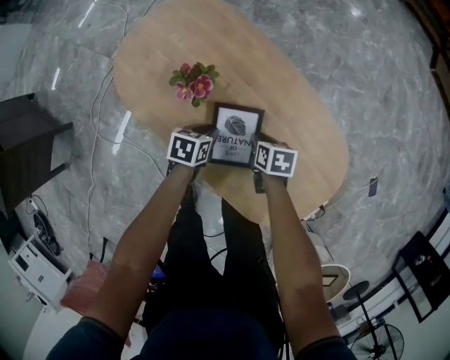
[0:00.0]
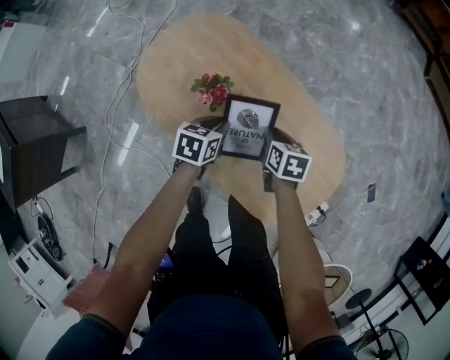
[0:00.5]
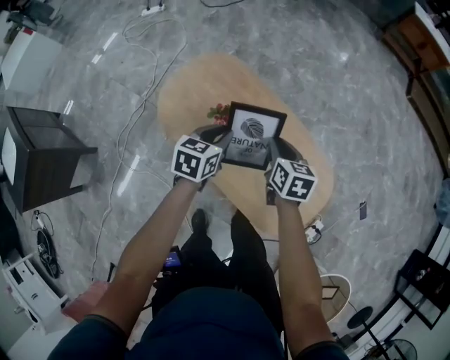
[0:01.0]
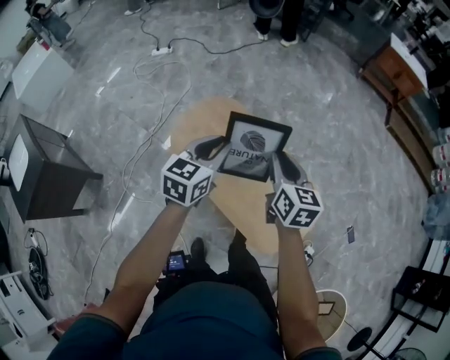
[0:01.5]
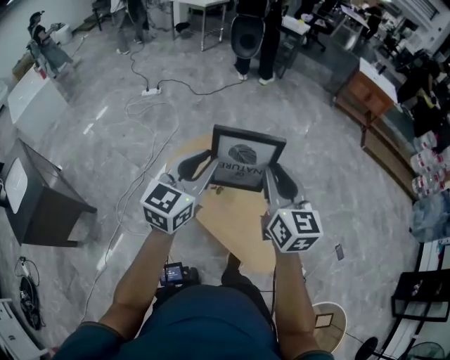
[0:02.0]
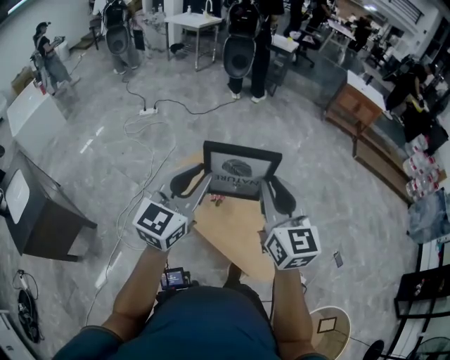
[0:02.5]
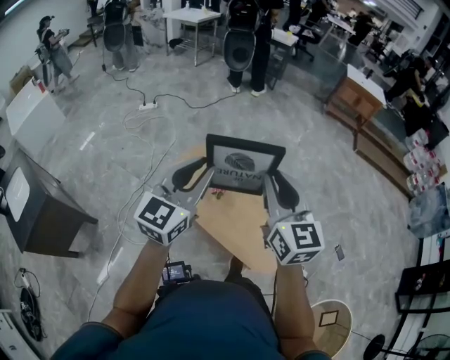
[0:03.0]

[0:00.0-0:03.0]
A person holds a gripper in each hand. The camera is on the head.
0:00.0 to 0:01.5: Both grippers travel together upward, some 50 cm. The right gripper angles its fingers upward, by approximately 40 degrees, while the left gripper points its fingers about 40 degrees further upward.
0:01.5 to 0:03.0: The two grippers go roughly 25 cm upward and backward. The right gripper turns by some 30 degrees. The left gripper rotates roughly 30 degrees.

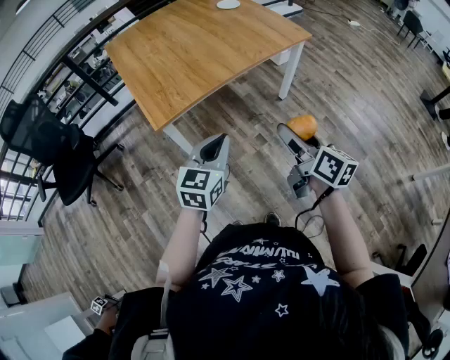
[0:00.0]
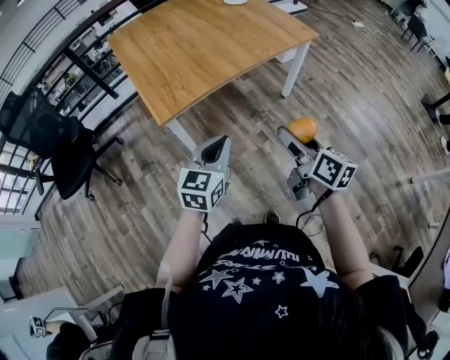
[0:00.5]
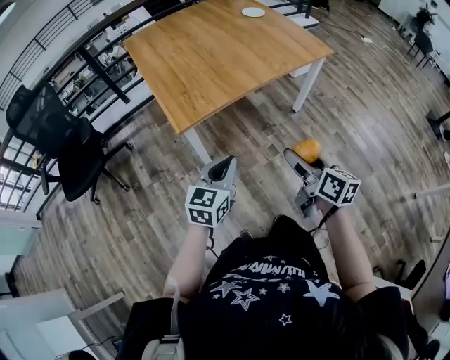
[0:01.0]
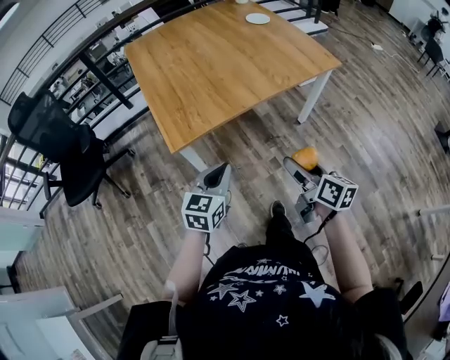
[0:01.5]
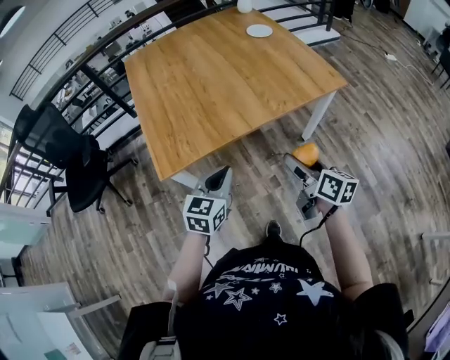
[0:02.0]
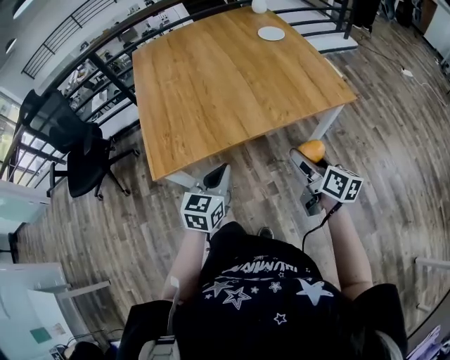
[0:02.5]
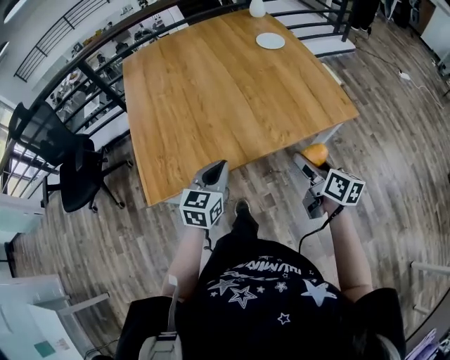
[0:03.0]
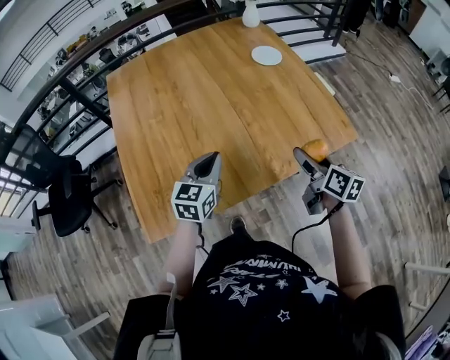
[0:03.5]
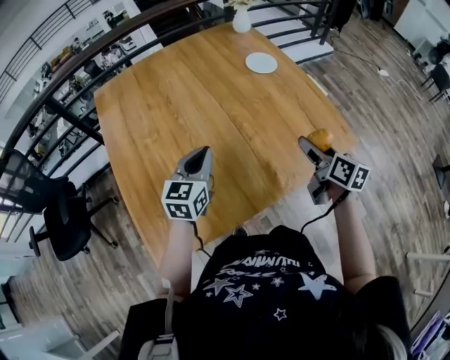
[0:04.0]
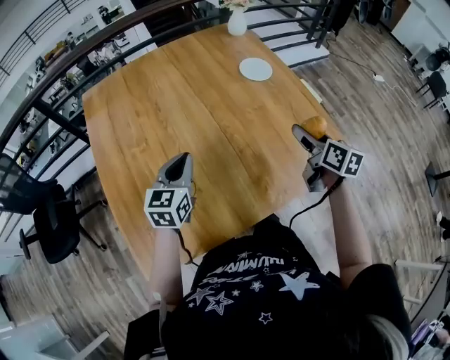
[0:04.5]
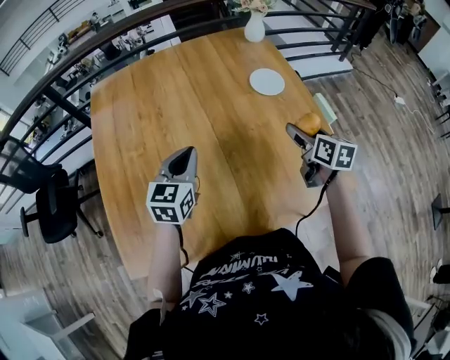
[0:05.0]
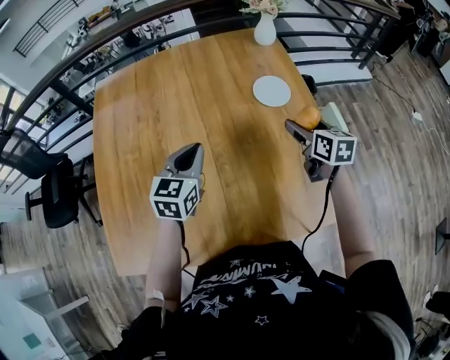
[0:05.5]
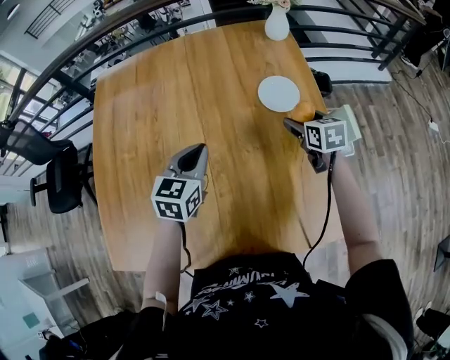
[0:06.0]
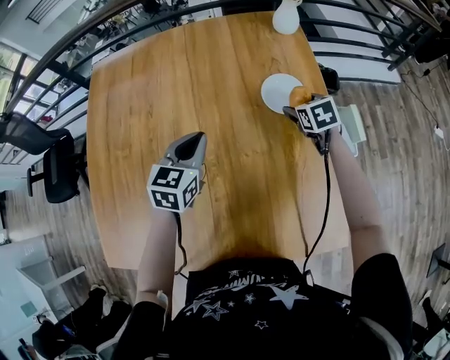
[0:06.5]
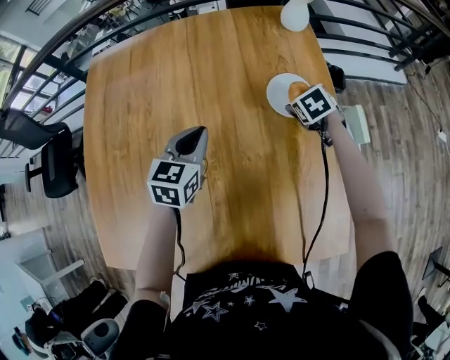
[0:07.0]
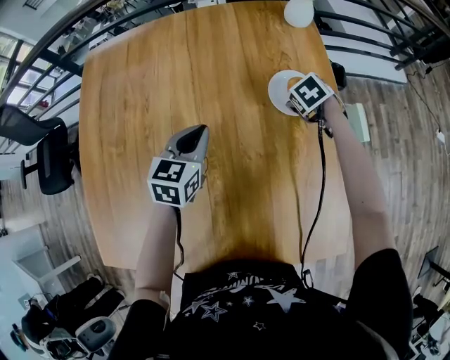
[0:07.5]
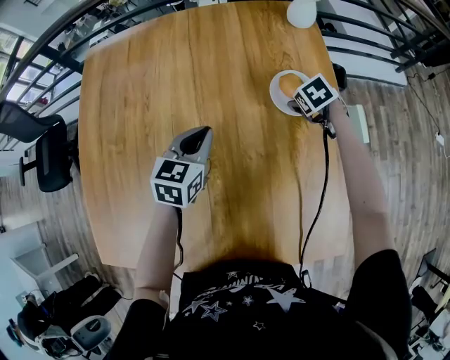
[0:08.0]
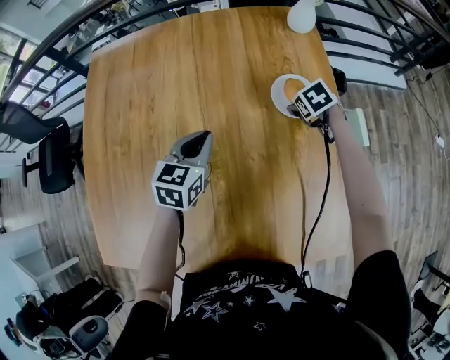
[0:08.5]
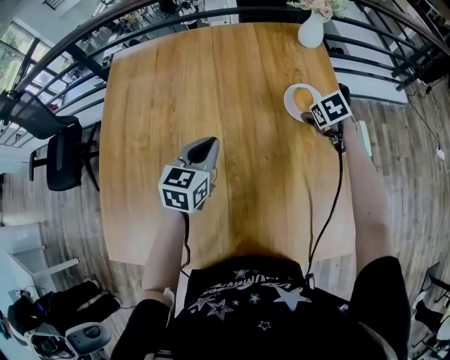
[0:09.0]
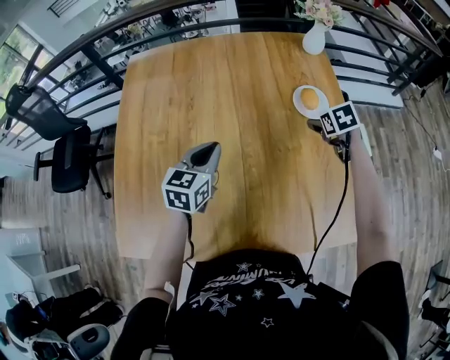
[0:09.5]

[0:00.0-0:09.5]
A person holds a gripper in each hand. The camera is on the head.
0:00.0 to 0:02.0: The two grippers go about 20 cm forward.
0:02.0 to 0:04.0: The grippers both shift forward by some 35 cm.
0:04.0 to 0:05.5: The right gripper goes roughly 25 cm forward, and swivels about 30 degrees; the left gripper goes about 15 cm forward and to the right.
0:05.5 to 0:07.5: The right gripper goes roughly 25 cm forward and downward, and angles its fingers downward, by roughly 40 degrees; the left gripper is displaced forward and downward by approximately 15 cm.
0:07.5 to 0:09.5: The left gripper heads backward and to the left, covering approximately 15 cm, while the right gripper is displaced backward and upward by roughly 15 cm.

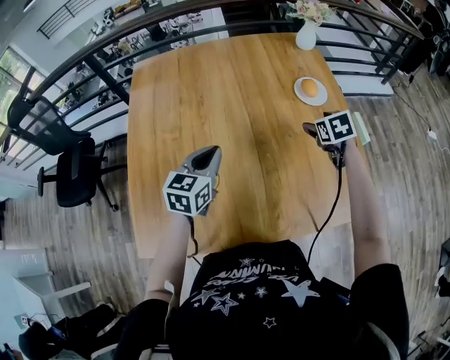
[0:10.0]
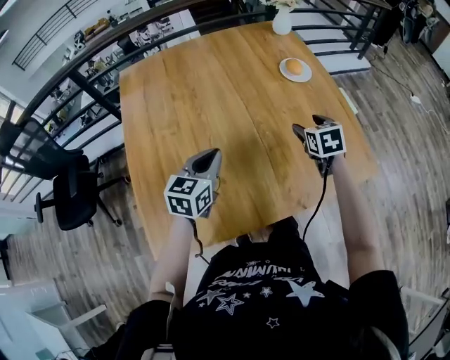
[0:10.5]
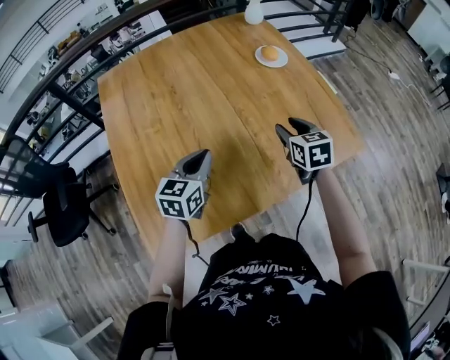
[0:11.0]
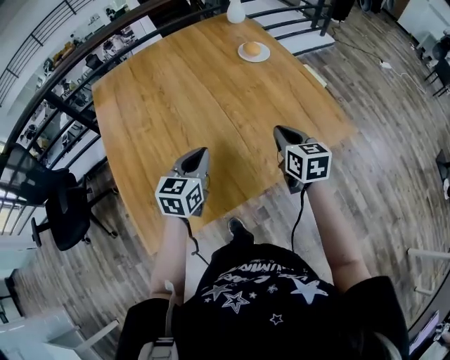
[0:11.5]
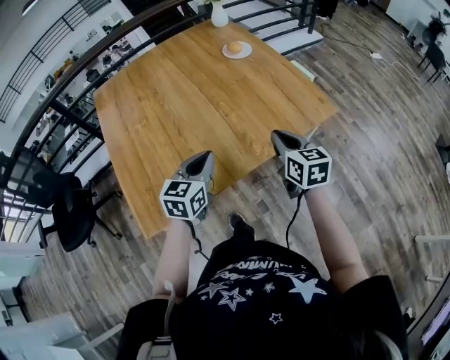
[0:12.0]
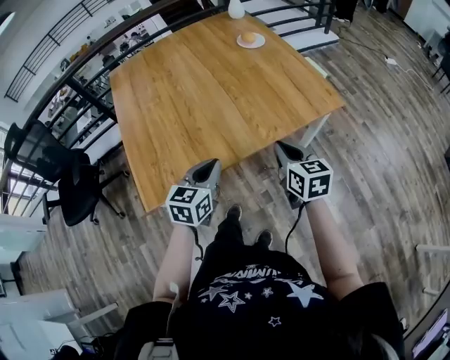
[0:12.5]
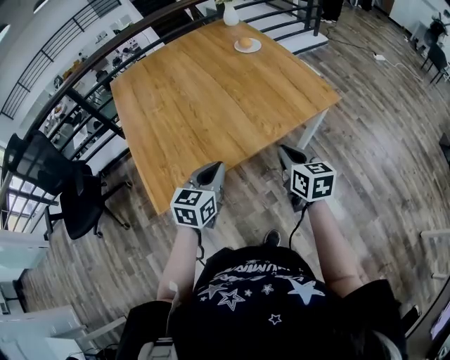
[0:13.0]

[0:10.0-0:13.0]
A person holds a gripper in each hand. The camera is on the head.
0:10.0 to 0:11.5: The left gripper shifts approximately 15 cm backward and to the right, while the right gripper is displaced backward by approximately 25 cm, rotates some 40 degrees, and closes.
0:11.5 to 0:13.0: The grippers both shift backward by some 25 cm.

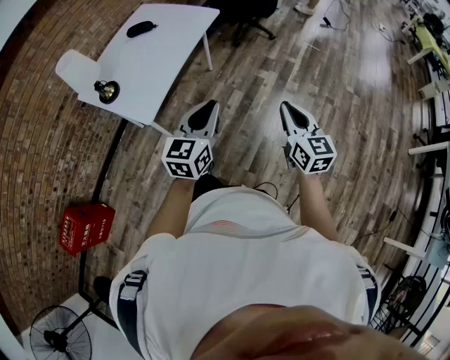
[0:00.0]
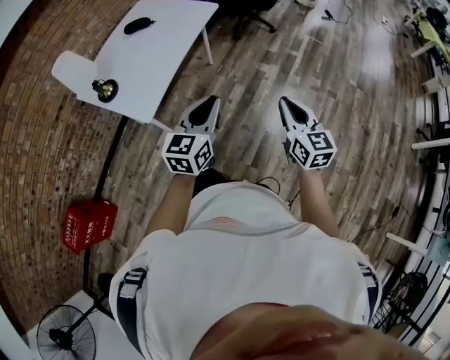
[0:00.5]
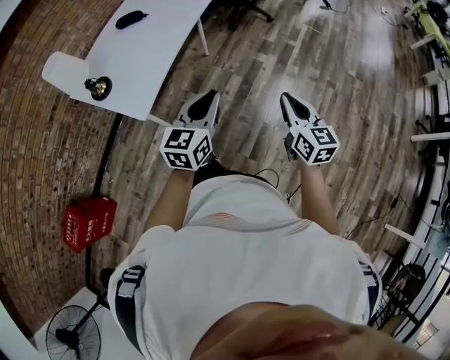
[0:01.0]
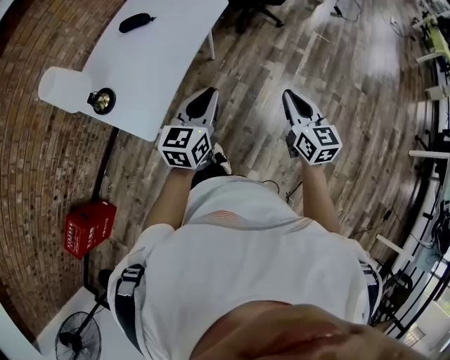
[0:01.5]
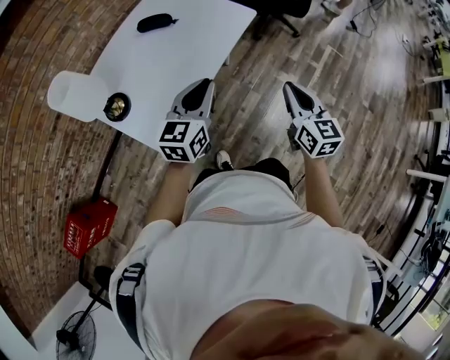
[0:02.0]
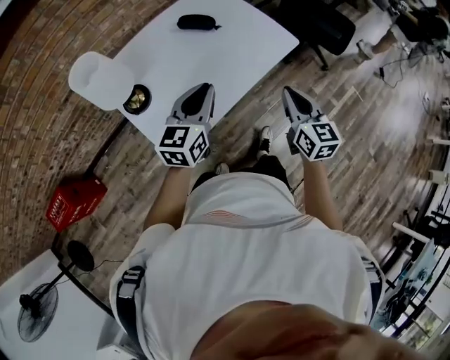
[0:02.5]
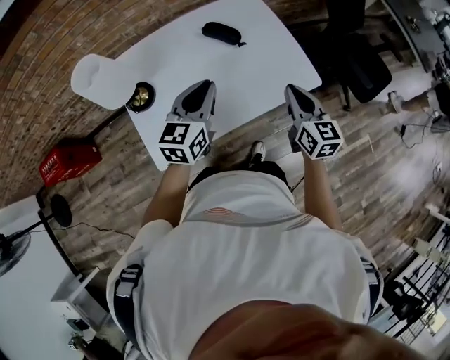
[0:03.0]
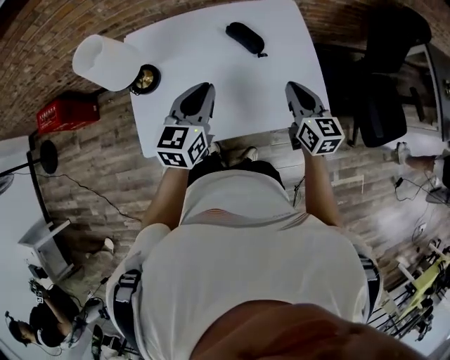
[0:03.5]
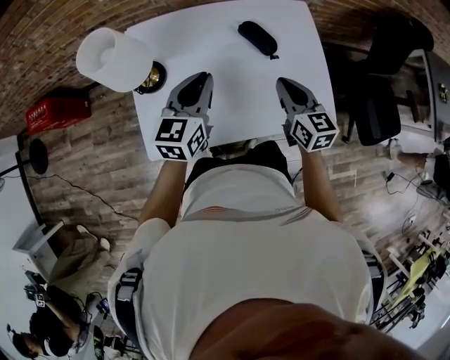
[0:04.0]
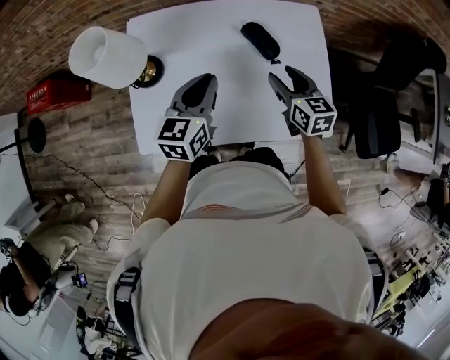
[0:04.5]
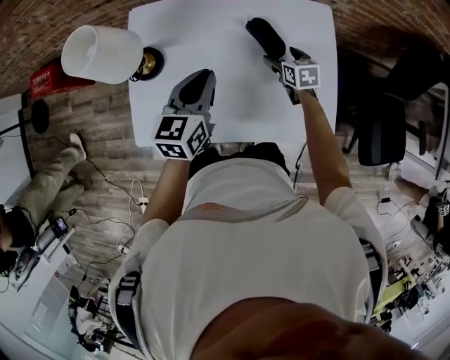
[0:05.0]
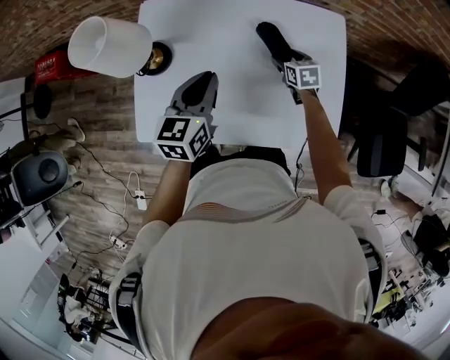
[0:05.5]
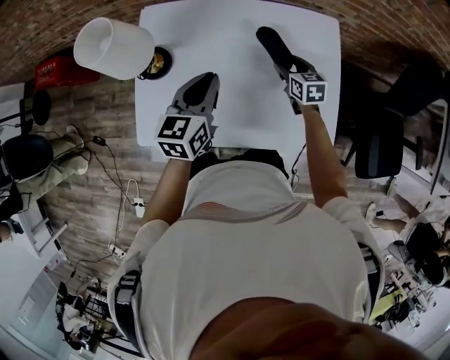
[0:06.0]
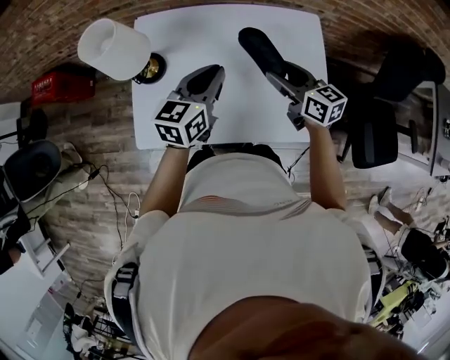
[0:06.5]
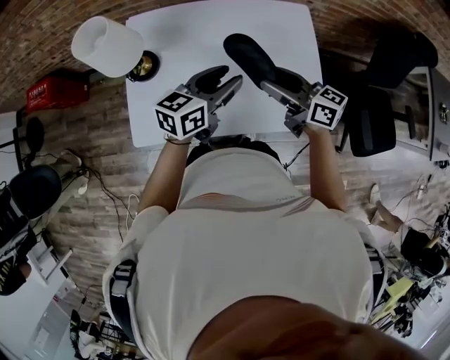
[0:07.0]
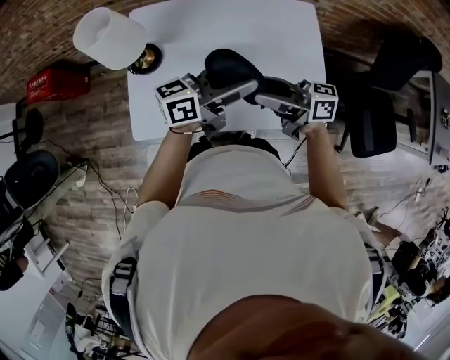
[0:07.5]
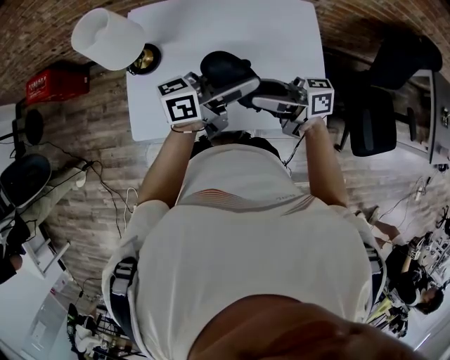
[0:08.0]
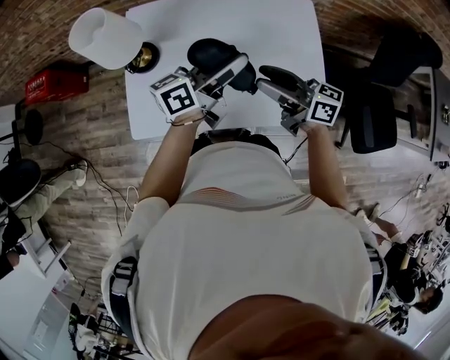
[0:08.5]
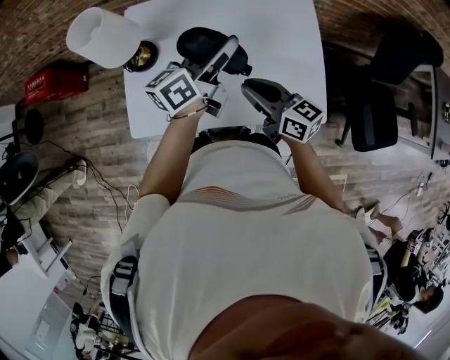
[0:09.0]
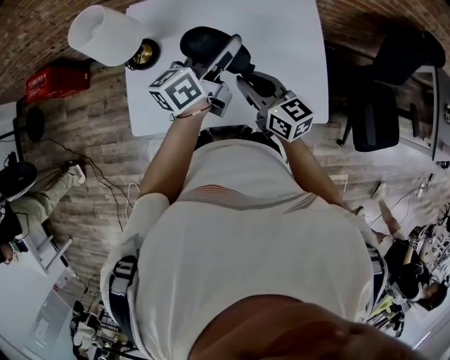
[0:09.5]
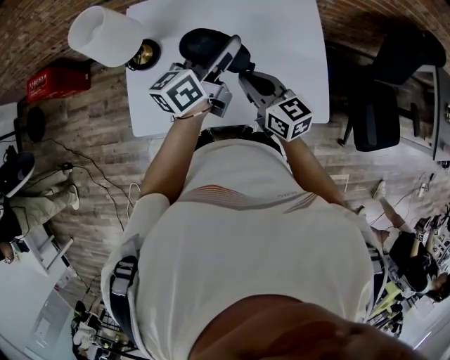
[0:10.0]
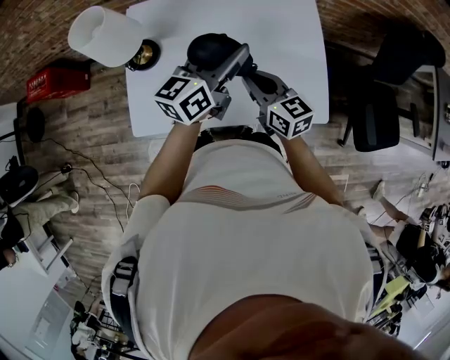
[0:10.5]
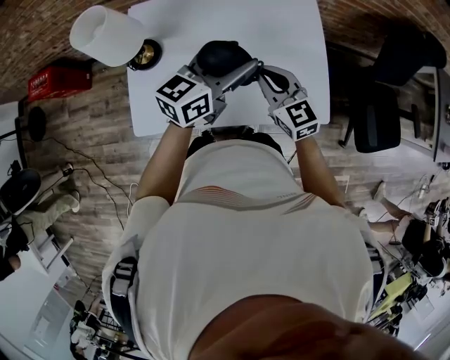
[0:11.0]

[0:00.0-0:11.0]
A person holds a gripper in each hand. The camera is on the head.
0:00.0 to 0:02.0: Both grippers move forward and to the left, about 35 cm.
0:02.0 to 0:03.5: The left gripper changes place by some 25 cm, and rotates about 50 degrees; the right gripper moves roughly 40 cm, and turns by about 50 degrees.
0:03.5 to 0:05.5: The left gripper goes approximately 10 cm forward. Meanwhile the right gripper shifts about 30 cm downward and forward, tilts its fingers approximately 30 degrees downward, and opens its fingers.
0:05.5 to 0:07.5: The right gripper travels upward by approximately 25 cm, and tips its fingers upward by roughly 60 degrees. The left gripper shifts by about 15 cm, angles its fingers upward, by approximately 30 degrees, and opens.
0:07.5 to 0:09.0: The right gripper turns by about 30 degrees, and closes its fingers; the left gripper ends up approximately 10 cm from where it was, and changes its angle by approximately 20 degrees.
0:09.0 to 0:11.0: The right gripper turns by some 30 degrees. Meanwhile the left gripper ends up some 5 cm from where it was, and turns by about 30 degrees.
